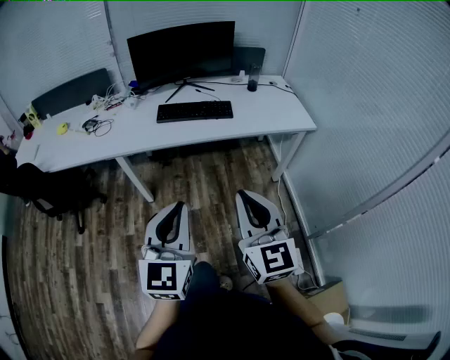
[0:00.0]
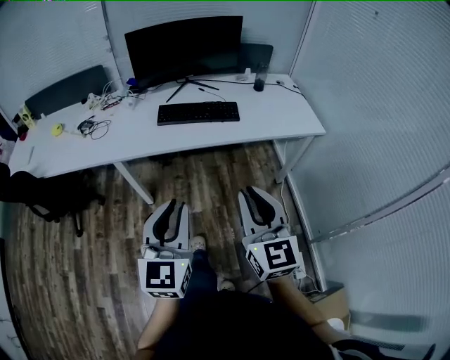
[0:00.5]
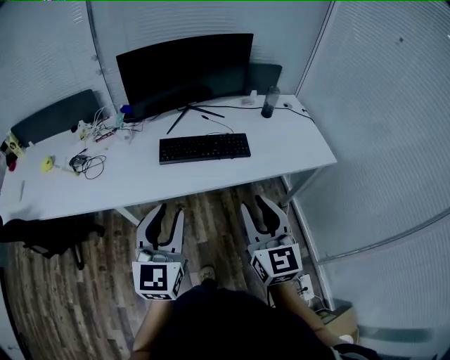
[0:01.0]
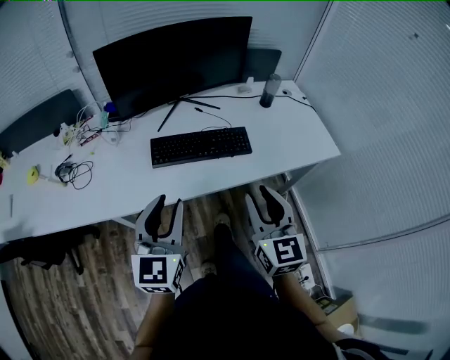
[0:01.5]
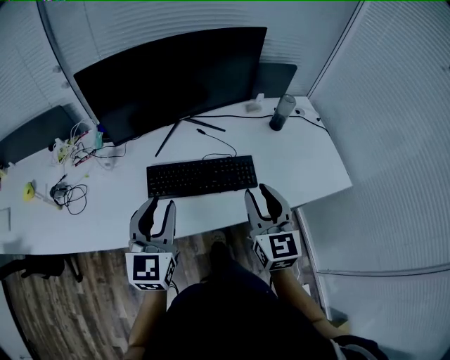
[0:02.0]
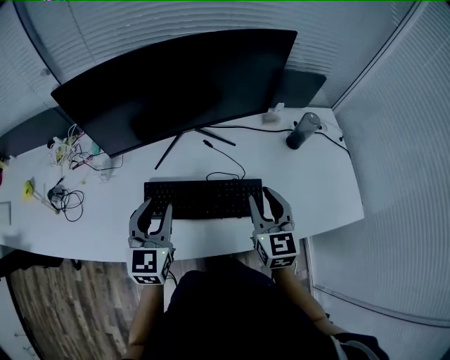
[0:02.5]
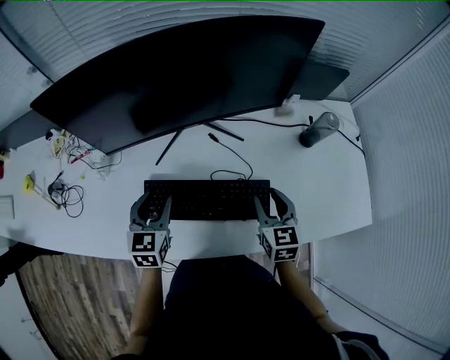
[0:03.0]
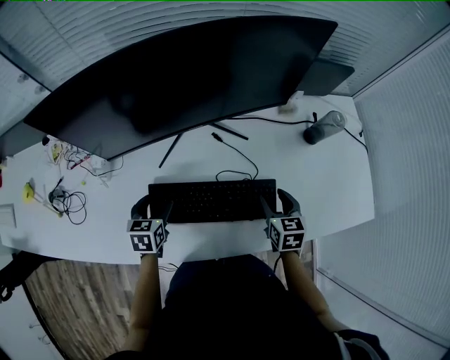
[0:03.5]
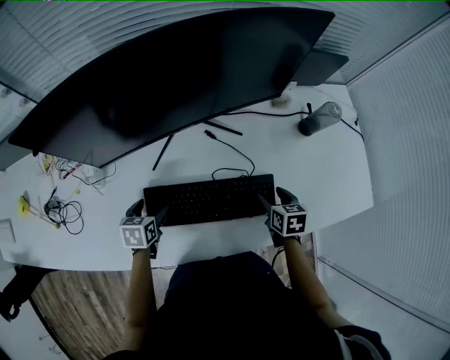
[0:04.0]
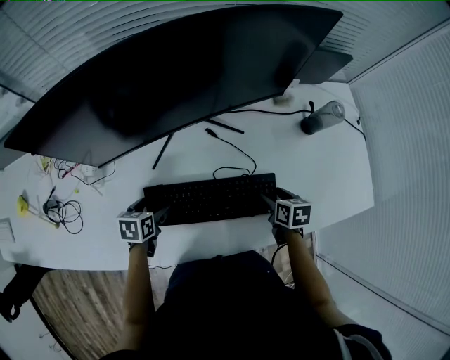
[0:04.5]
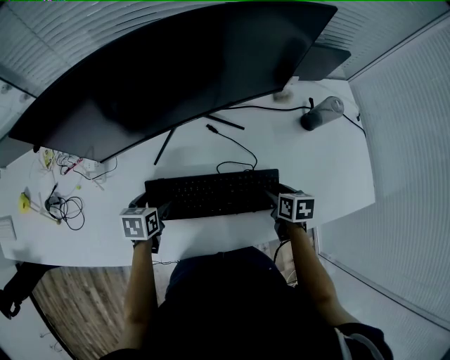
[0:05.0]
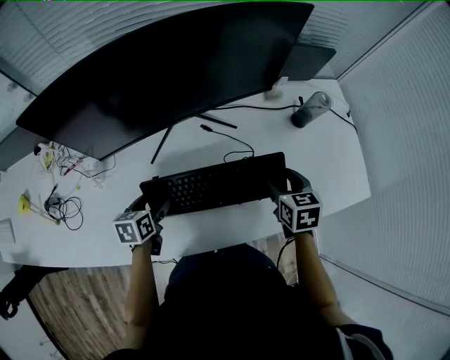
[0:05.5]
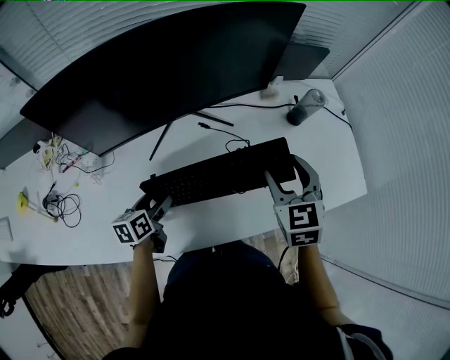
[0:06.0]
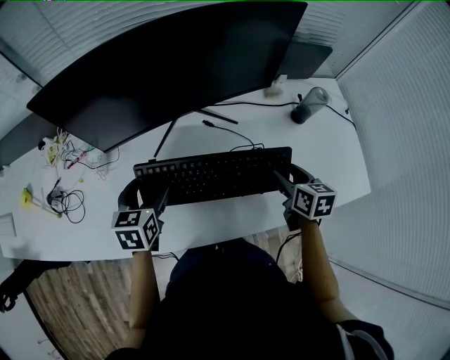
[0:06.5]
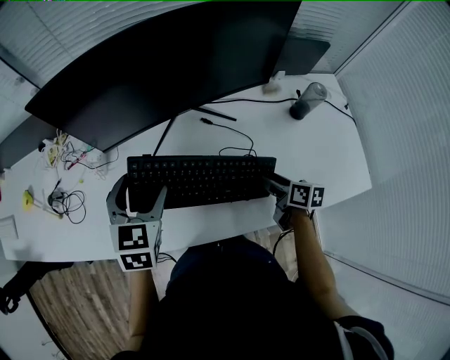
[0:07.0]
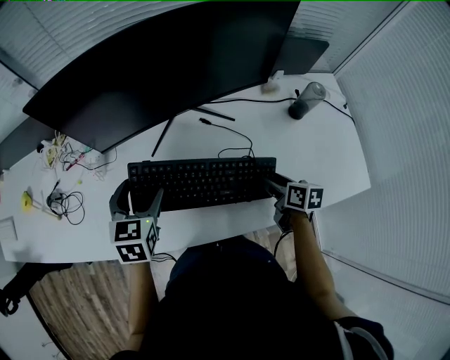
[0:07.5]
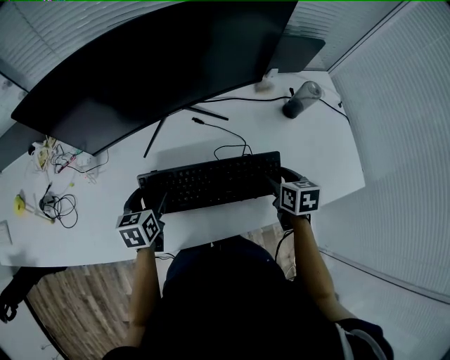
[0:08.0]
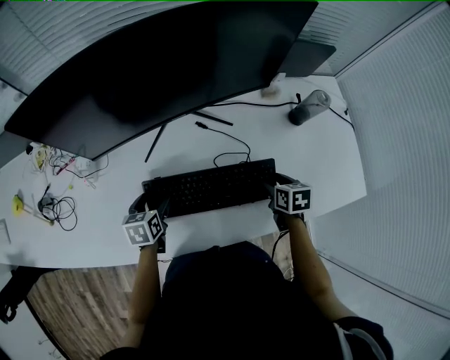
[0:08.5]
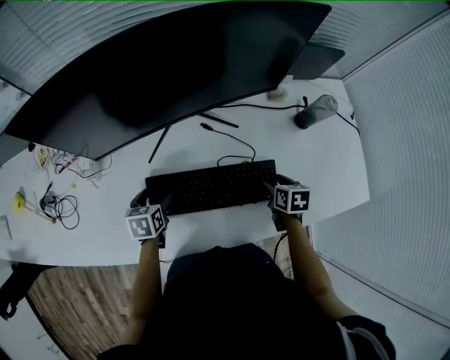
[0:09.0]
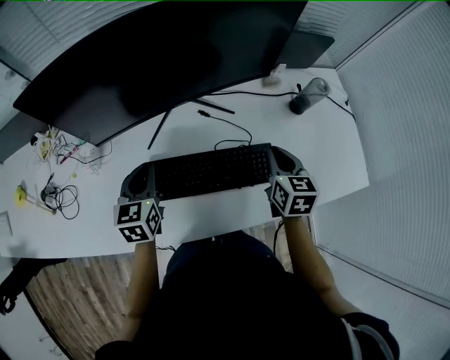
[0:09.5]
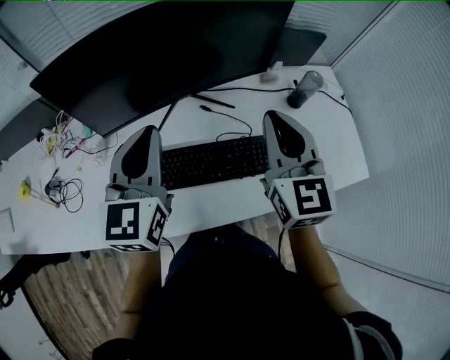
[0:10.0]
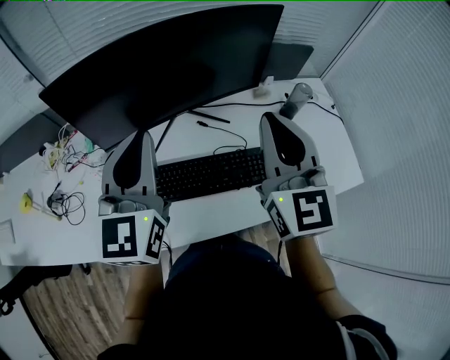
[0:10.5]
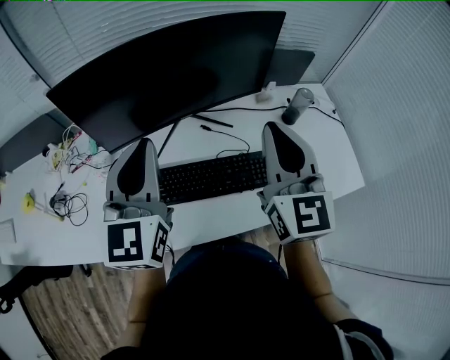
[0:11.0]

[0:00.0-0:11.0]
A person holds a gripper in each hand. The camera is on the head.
0:00.0 to 0:02.0: The pair of grippers is taken forward, some 60 cm.
0:02.0 to 0:03.5: Both grippers travel together downward and forward, some 30 cm. The right gripper points its fingers approximately 30 degrees further downward. Meanwhile the left gripper points its fingers about 40 degrees further downward, and opens.
0:03.5 to 0:05.5: The right gripper goes approximately 5 cm upward.
0:05.5 to 0:07.5: The left gripper heads upward, covering about 15 cm, and turns by some 30 degrees. Meanwhile the right gripper travels downward by some 5 cm, and swivels approximately 30 degrees.
0:07.5 to 0:09.0: The right gripper travels downward by some 5 cm, and turns by some 20 degrees; the left gripper travels downward by roughly 20 cm, and changes its angle by roughly 30 degrees.
0:09.0 to 0:11.0: The two grippers go approximately 40 cm upward. The left gripper angles its fingers upward, by some 50 degrees, and closes, while the right gripper points its fingers approximately 60 degrees further upward, and closes its fingers.

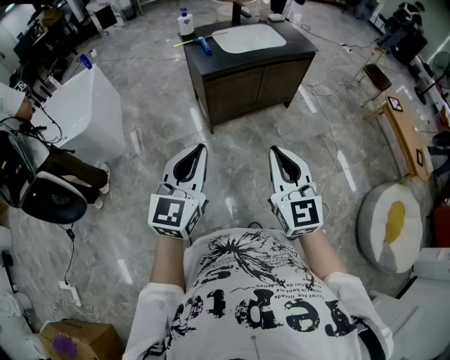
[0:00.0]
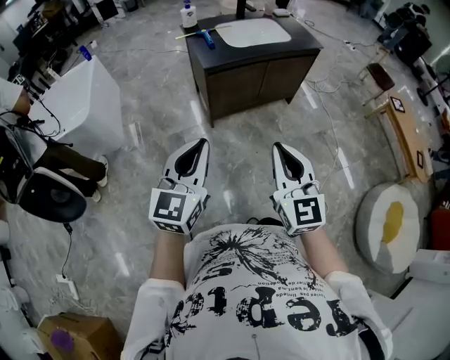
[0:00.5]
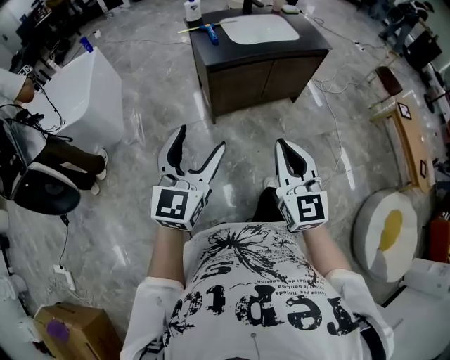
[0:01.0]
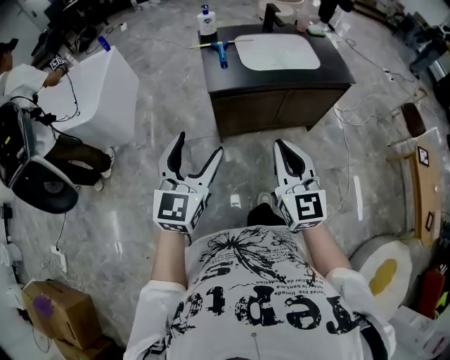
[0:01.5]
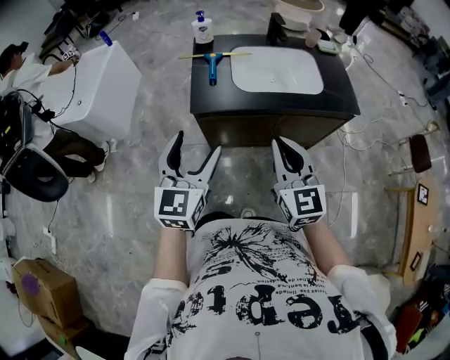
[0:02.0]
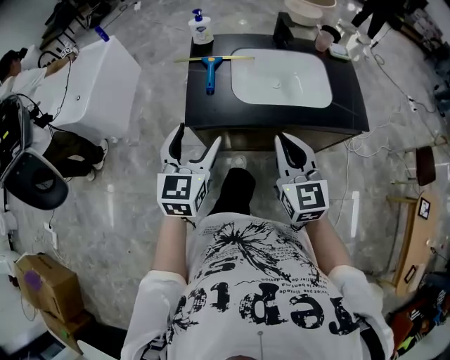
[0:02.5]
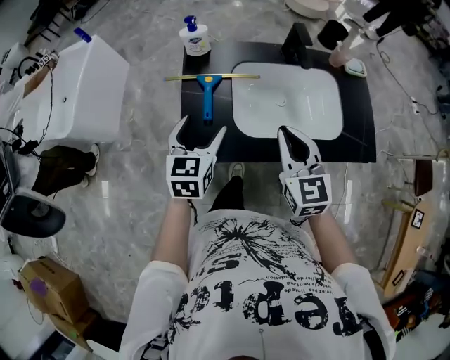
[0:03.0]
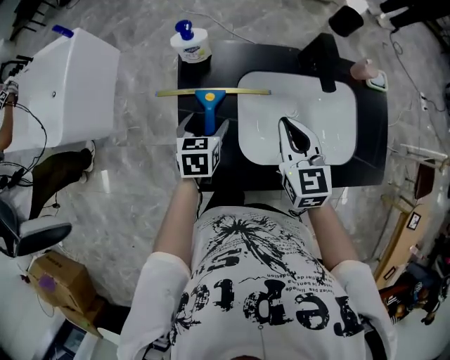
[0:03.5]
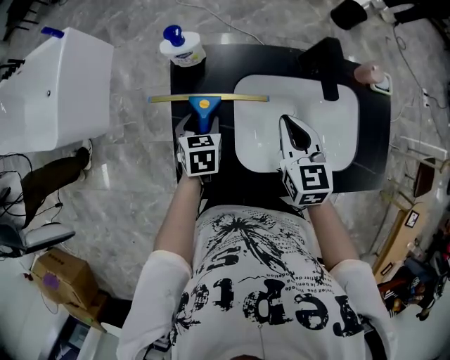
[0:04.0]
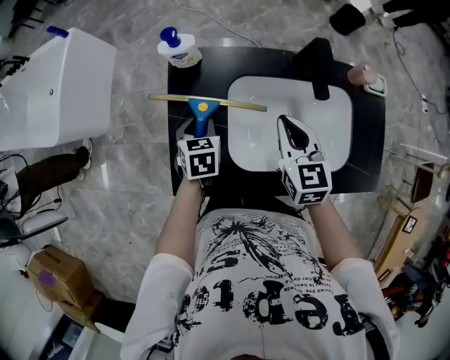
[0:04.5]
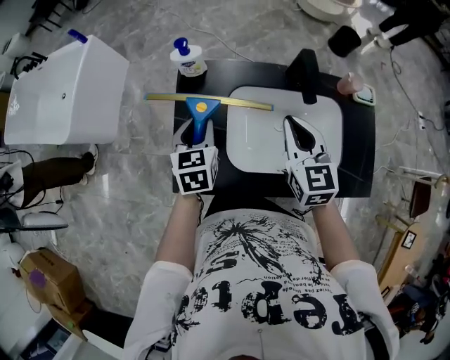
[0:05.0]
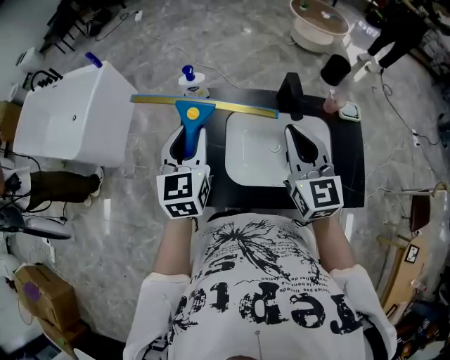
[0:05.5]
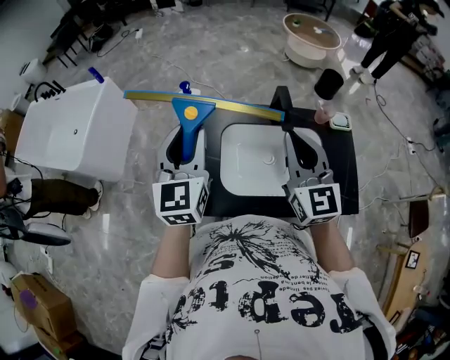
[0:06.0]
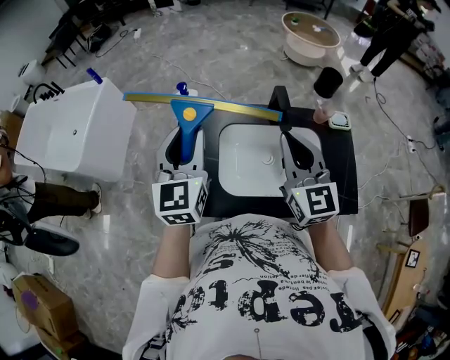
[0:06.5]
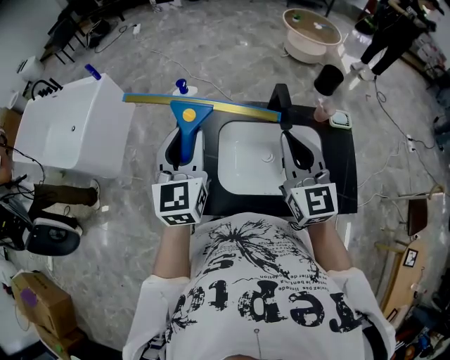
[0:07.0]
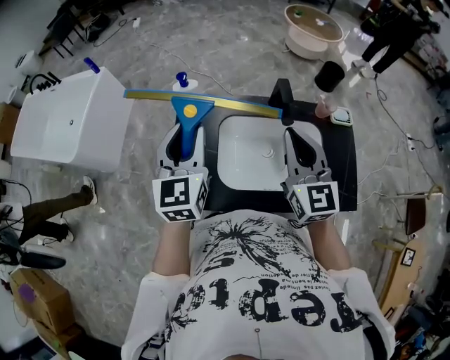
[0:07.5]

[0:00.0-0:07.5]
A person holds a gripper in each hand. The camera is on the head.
0:00.0 to 0:02.0: The pair of grippers is taken forward and to the right, about 50 cm. The right gripper changes its angle by roughly 20 degrees. Meanwhile the left gripper turns by about 30 degrees, and opens its fingers.
0:02.0 to 0:04.0: The pair of grippers is taken forward, some 60 cm. The right gripper changes its angle by approximately 20 degrees; the left gripper heads downward, covering approximately 30 cm, and angles its fingers downward, by about 40 degrees.
0:04.0 to 0:05.5: The right gripper heads upward and backward, covering about 25 cm, and changes its angle by roughly 20 degrees; the left gripper goes some 30 cm upward, and points its fingers about 40 degrees further upward.
0:05.5 to 0:07.5: The left gripper is displaced upward by approximately 5 cm.

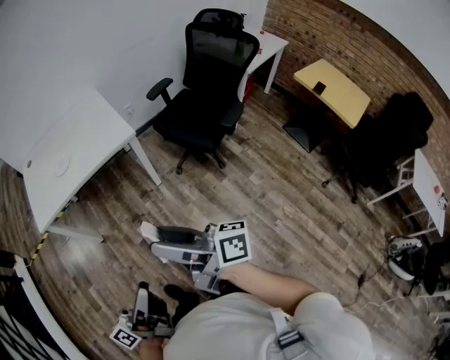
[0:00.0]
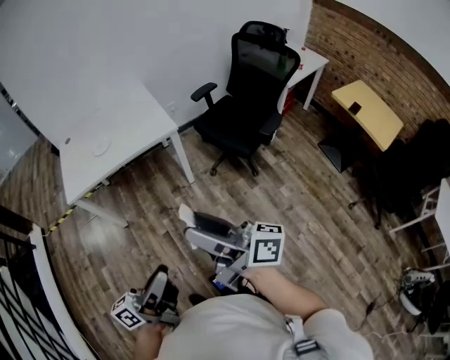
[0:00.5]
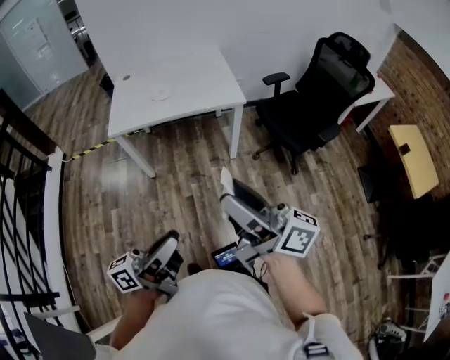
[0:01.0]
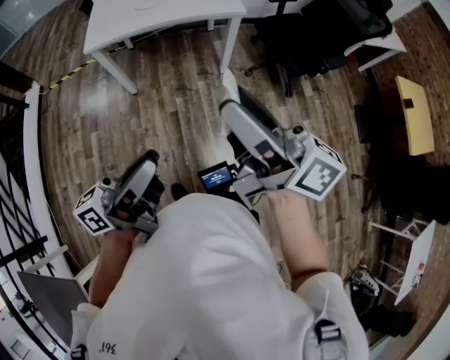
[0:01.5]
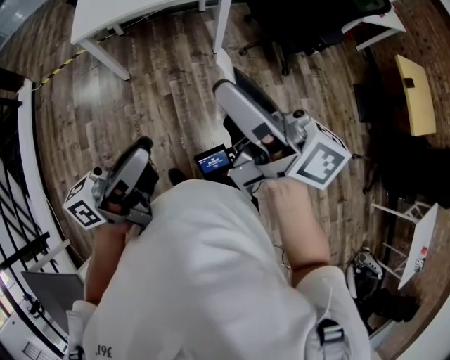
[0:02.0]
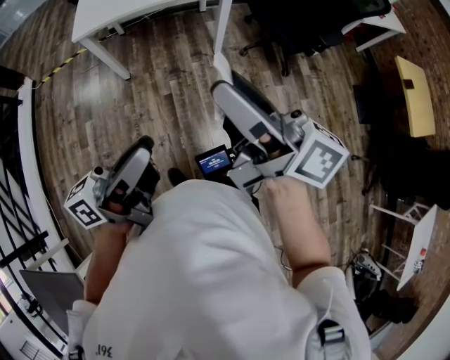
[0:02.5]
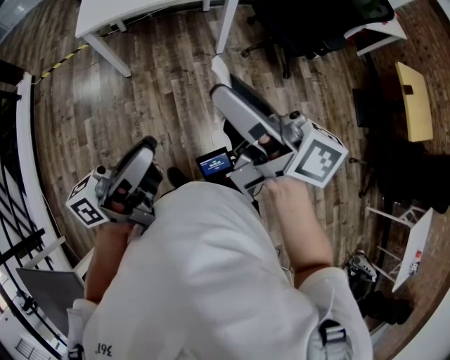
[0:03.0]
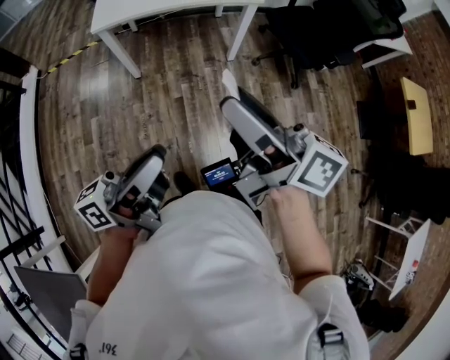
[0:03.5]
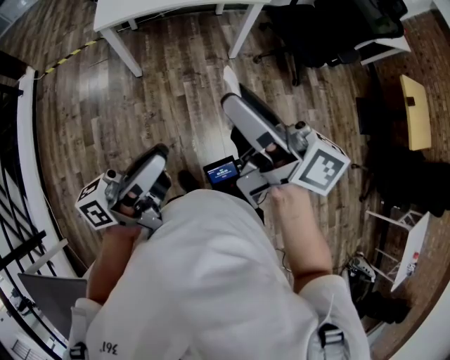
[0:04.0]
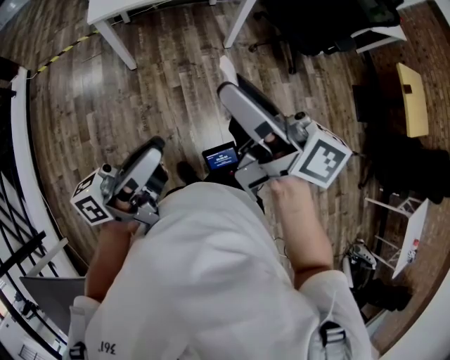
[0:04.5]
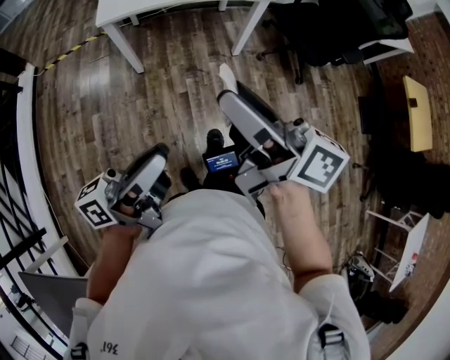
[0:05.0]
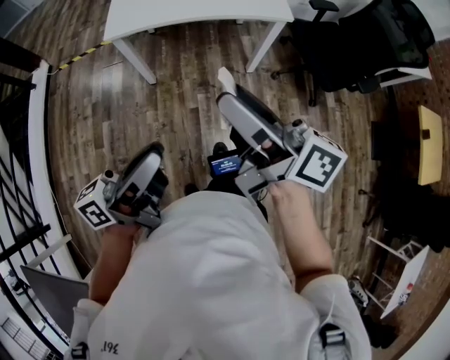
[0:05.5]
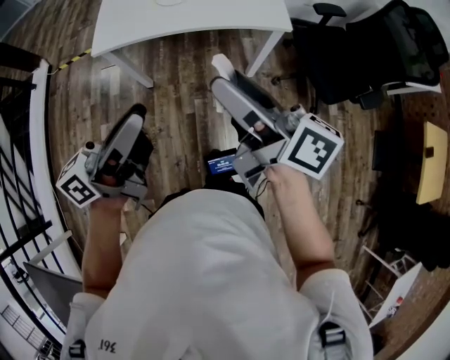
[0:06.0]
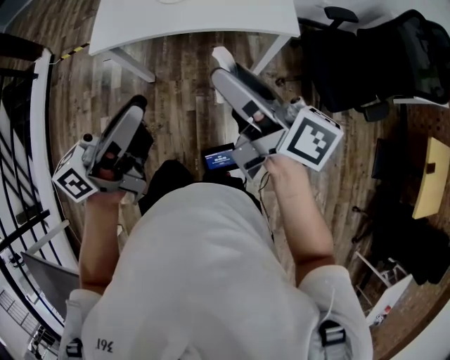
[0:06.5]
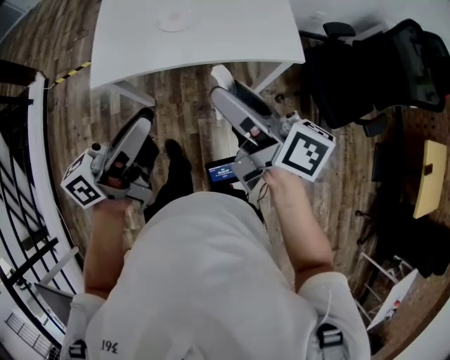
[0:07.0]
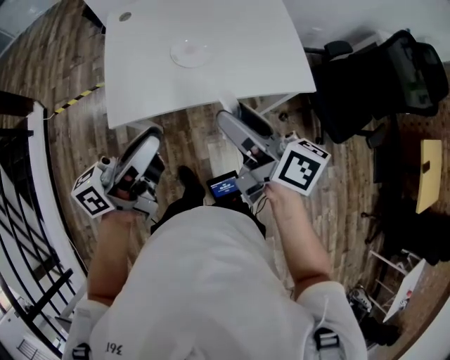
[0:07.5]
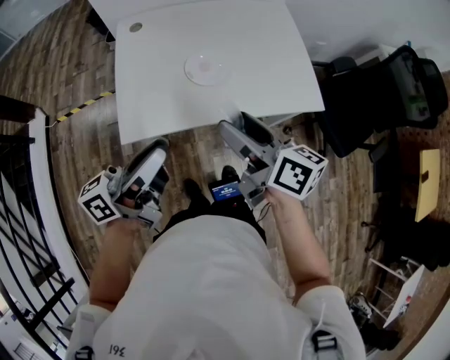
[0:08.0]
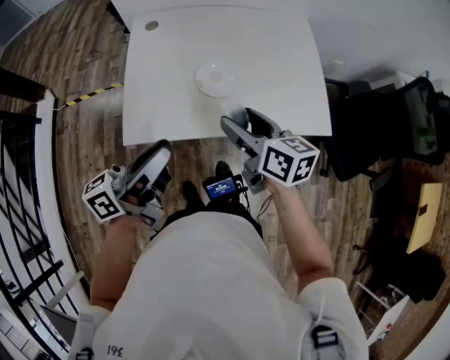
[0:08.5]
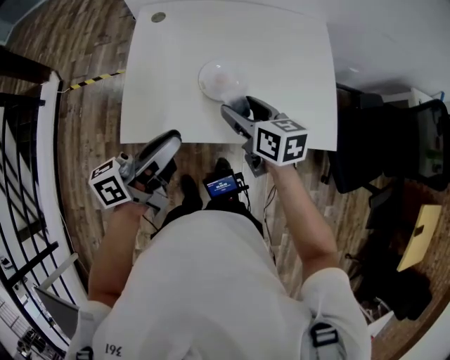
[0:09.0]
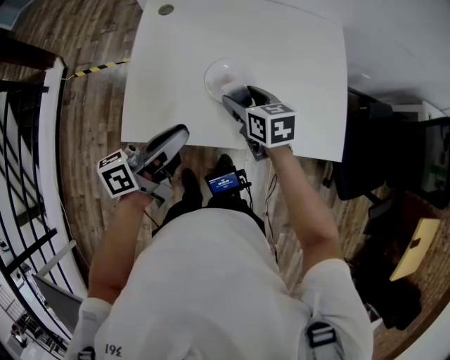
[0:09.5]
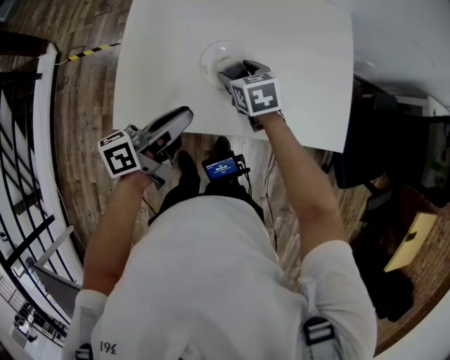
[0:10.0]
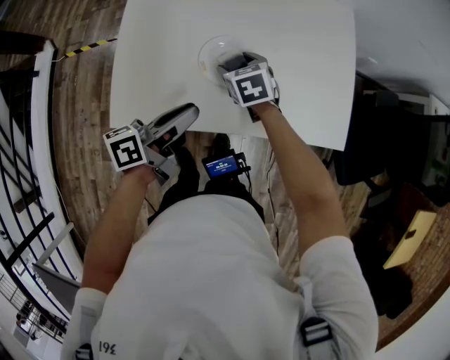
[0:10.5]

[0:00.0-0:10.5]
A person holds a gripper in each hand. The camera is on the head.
0:00.0 to 0:02.0: The two grippers go some 10 cm backward and upward.
0:02.0 to 0:04.0: Both grippers travel together to the left, roughly 10 cm.
0:04.0 to 0:06.5: Both grippers travel together forward, approximately 30 cm.
0:06.5 to 0:08.5: Both grippers move forward and to the left, about 30 cm. The right gripper changes its angle by about 30 degrees.
0:08.5 to 0:10.5: The grippers both shift downward and forward by some 20 cm. The left gripper swivels roughly 20 degrees, while the right gripper points its fingers some 30 degrees further downward.
